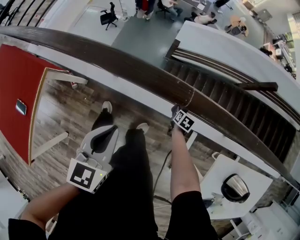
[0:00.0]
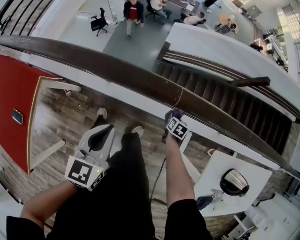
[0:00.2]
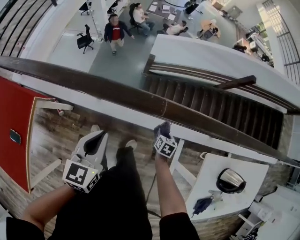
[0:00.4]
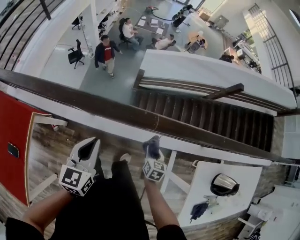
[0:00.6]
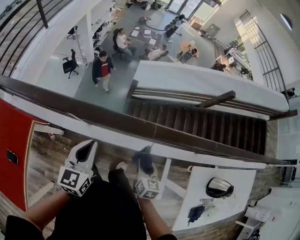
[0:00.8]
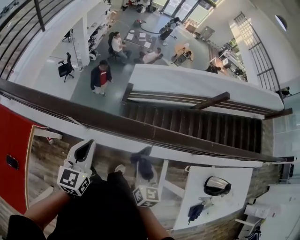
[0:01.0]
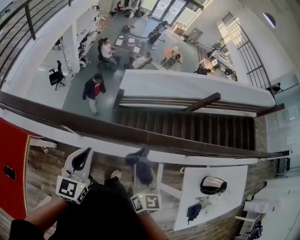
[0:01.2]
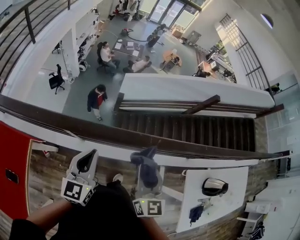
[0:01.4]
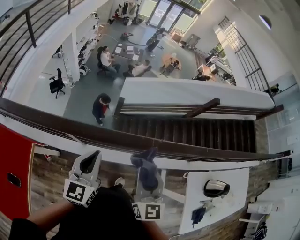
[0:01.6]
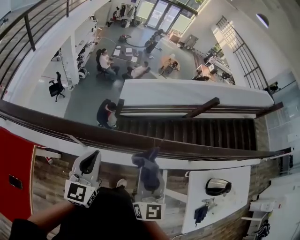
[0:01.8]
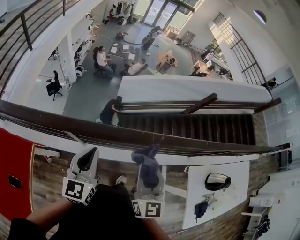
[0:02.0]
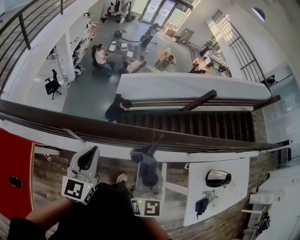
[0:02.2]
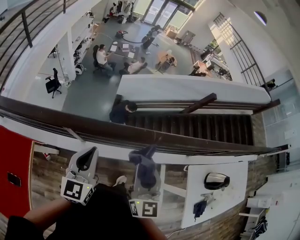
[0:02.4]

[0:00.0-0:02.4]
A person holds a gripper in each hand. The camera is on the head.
0:00.0 to 0:01.2: The right gripper goes some 40 cm upward, and angles its fingers upward, by about 50 degrees, while the left gripper heads forward, to the left and upward, covering roughly 10 cm.
0:01.2 to 0:02.4: The right gripper moves upward, roughly 5 cm.

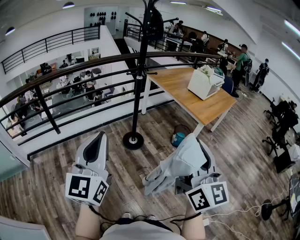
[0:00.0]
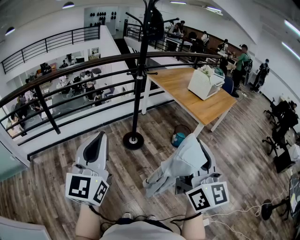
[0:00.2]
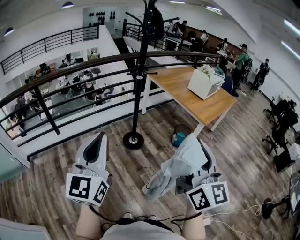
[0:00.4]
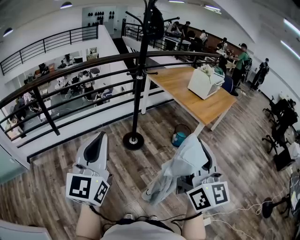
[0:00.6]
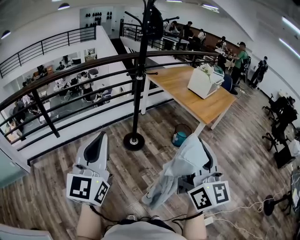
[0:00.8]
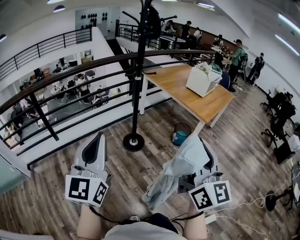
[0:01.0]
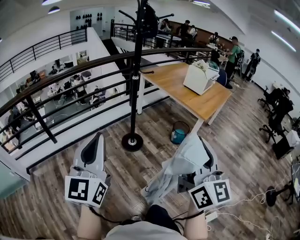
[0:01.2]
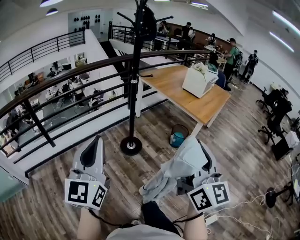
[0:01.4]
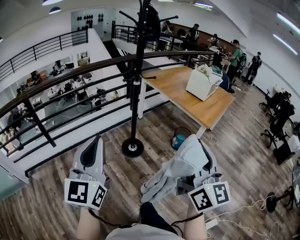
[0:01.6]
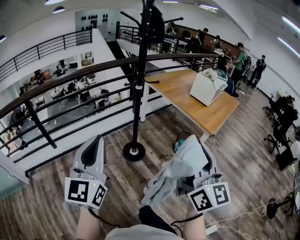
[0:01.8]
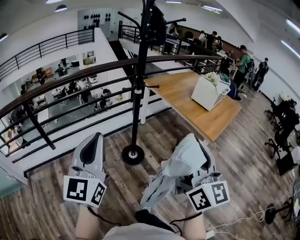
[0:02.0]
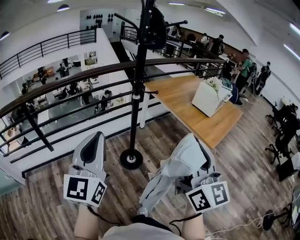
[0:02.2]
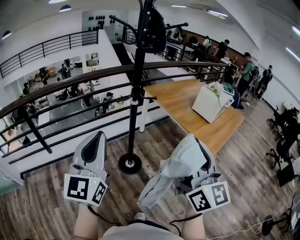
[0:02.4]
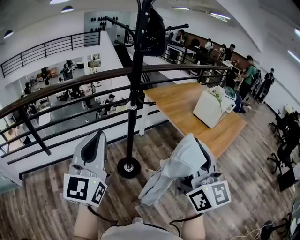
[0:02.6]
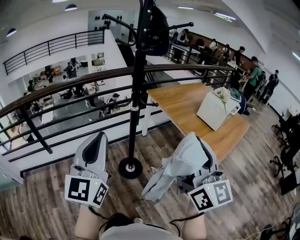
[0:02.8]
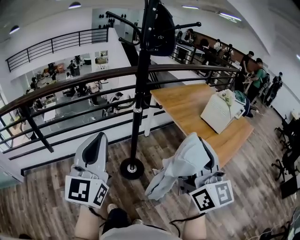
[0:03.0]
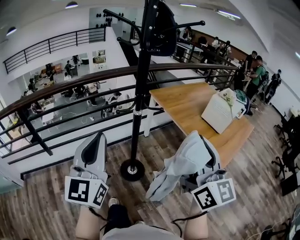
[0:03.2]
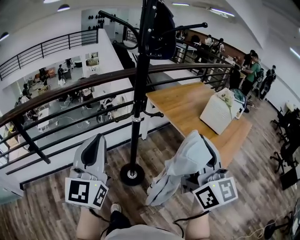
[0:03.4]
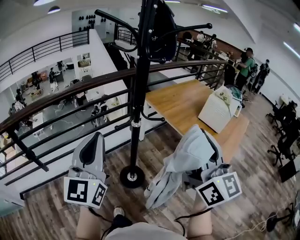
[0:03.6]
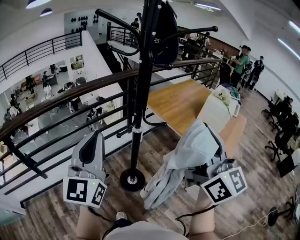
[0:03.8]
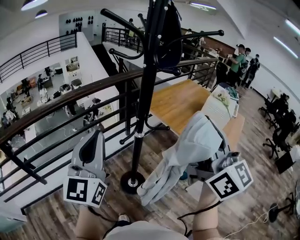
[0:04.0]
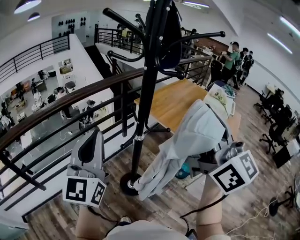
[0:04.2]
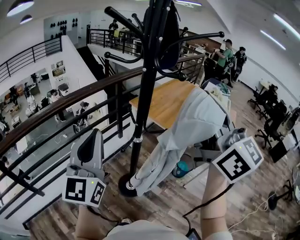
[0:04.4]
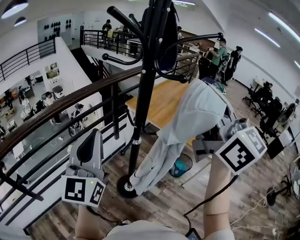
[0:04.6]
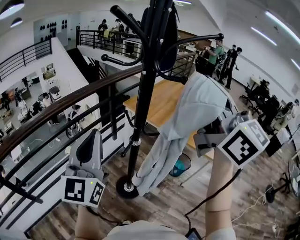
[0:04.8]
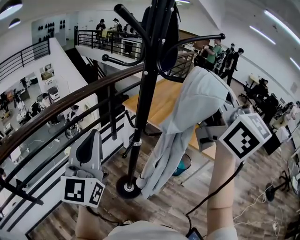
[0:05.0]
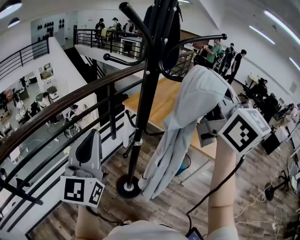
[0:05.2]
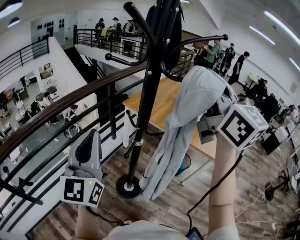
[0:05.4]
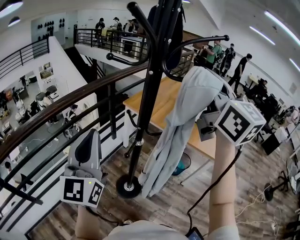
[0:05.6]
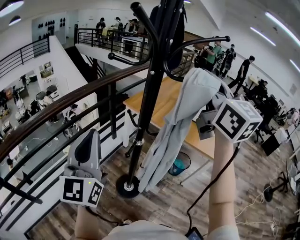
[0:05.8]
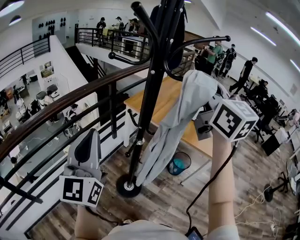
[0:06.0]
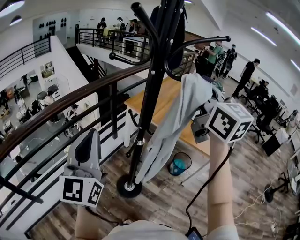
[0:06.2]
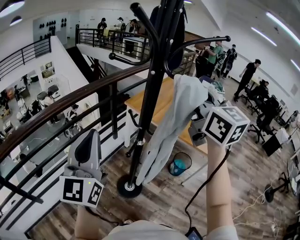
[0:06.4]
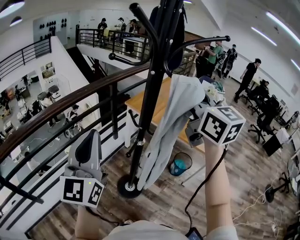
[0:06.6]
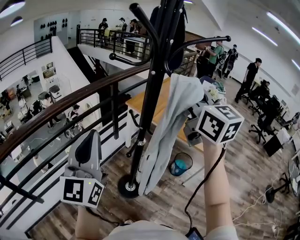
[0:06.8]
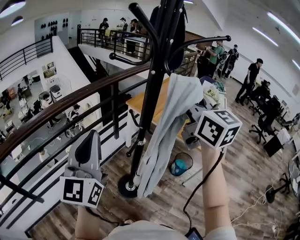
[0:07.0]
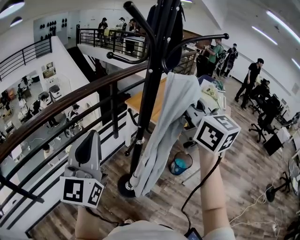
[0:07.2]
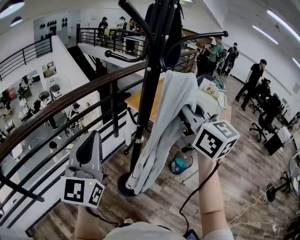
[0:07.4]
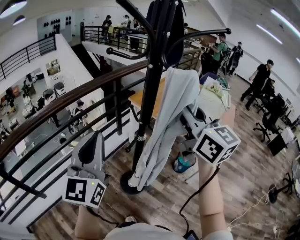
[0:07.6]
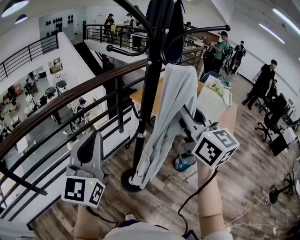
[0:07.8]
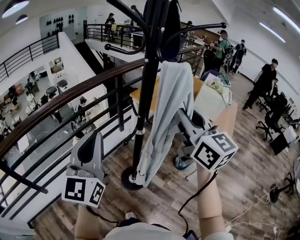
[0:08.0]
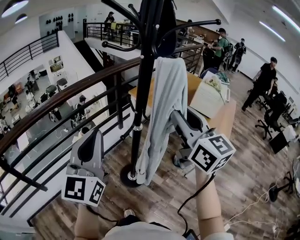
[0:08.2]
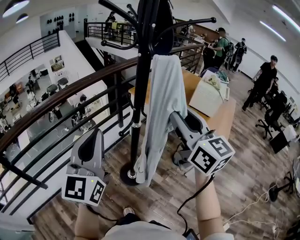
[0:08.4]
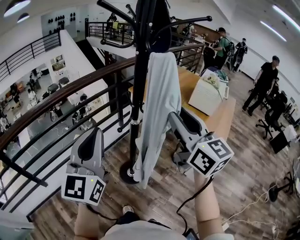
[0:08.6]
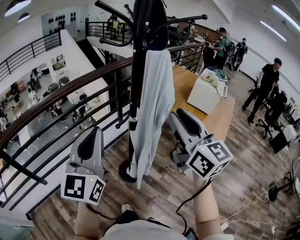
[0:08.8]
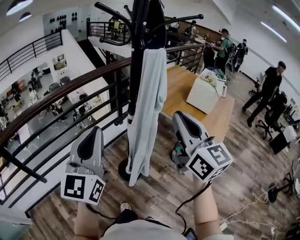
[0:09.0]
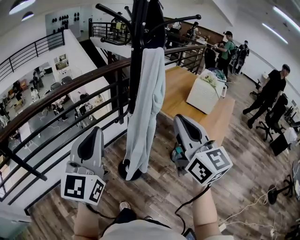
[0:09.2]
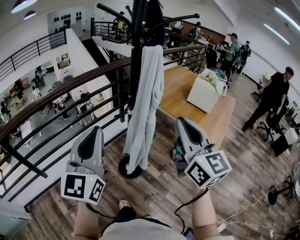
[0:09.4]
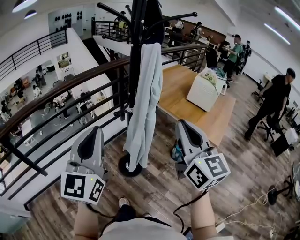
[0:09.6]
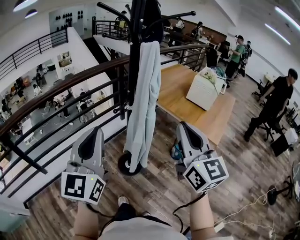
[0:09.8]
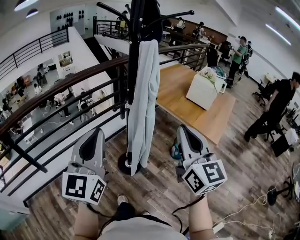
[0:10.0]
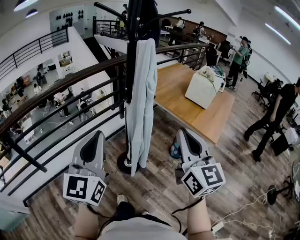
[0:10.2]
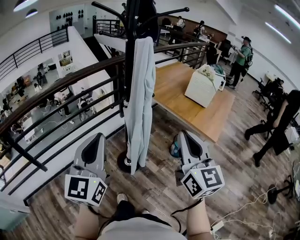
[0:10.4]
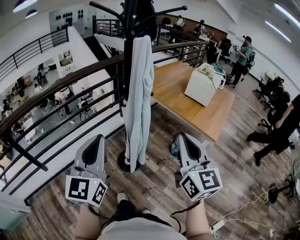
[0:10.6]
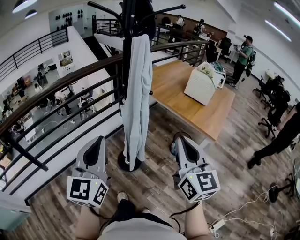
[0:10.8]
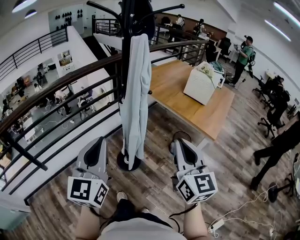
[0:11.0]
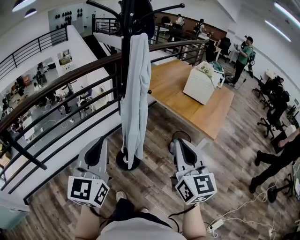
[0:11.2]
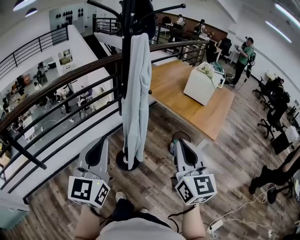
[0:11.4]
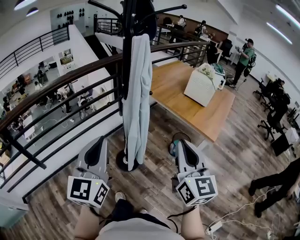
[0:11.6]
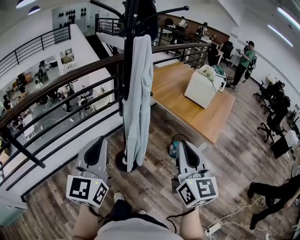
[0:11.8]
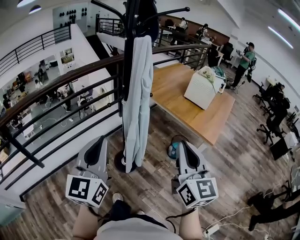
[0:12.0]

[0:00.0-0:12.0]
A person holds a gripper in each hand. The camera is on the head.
0:00.0 to 0:01.6: The right gripper is displaced forward by approximately 10 cm, while the left gripper goes about 10 cm forward and to the left.
0:01.6 to 0:03.0: Both grippers move forward, approximately 25 cm.
0:03.0 to 0:04.4: The left gripper is displaced forward and to the left by about 25 cm. The right gripper goes roughly 25 cm forward, upward and to the left.
0:04.4 to 0:06.0: The left gripper moves approximately 5 cm. Meanwhile the right gripper heads forward, covering approximately 10 cm.
0:06.0 to 0:07.6: The right gripper moves downward, approximately 10 cm.
0:07.6 to 0:09.0: Both grippers move backward, roughly 15 cm. The right gripper opens, then closes again.
0:09.0 to 0:10.4: The left gripper heads backward, covering about 10 cm. The right gripper heads backward, to the right and downward, covering about 15 cm.
0:10.4 to 0:12.0: The grippers make only small movements.

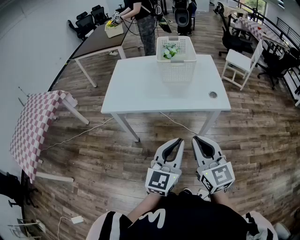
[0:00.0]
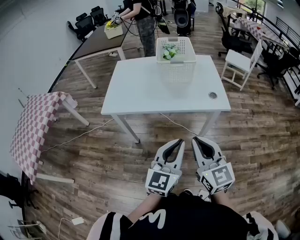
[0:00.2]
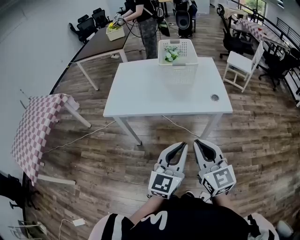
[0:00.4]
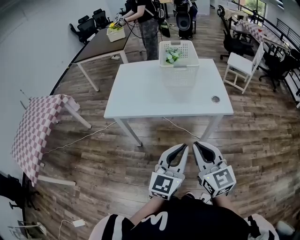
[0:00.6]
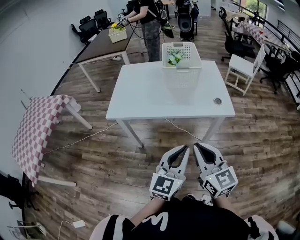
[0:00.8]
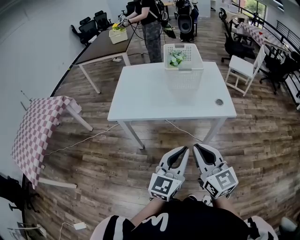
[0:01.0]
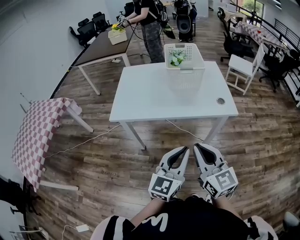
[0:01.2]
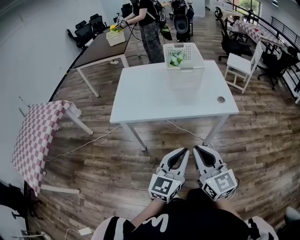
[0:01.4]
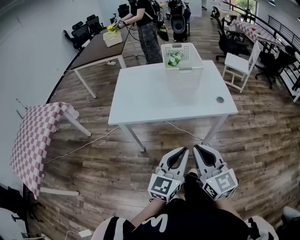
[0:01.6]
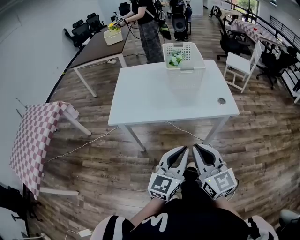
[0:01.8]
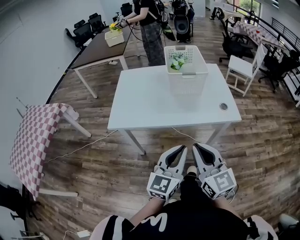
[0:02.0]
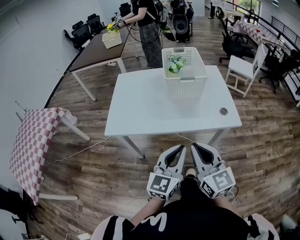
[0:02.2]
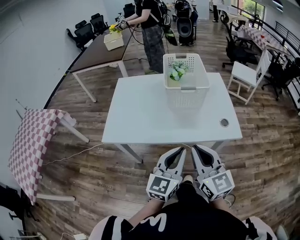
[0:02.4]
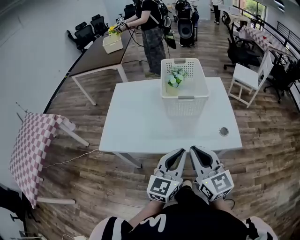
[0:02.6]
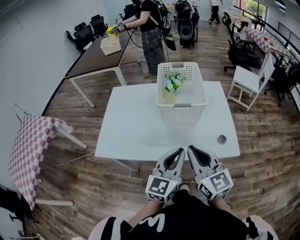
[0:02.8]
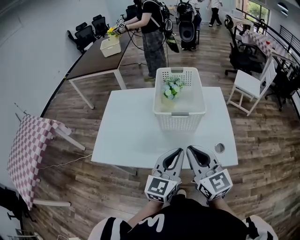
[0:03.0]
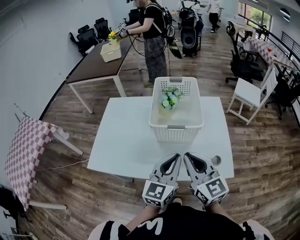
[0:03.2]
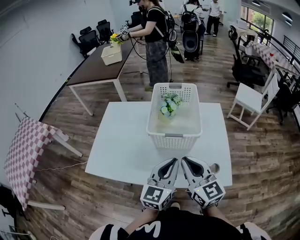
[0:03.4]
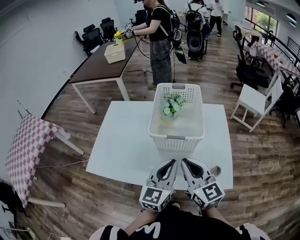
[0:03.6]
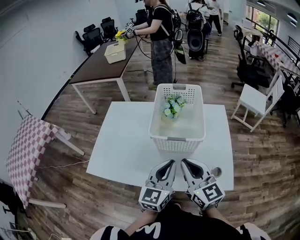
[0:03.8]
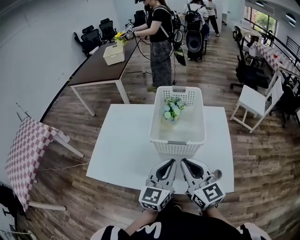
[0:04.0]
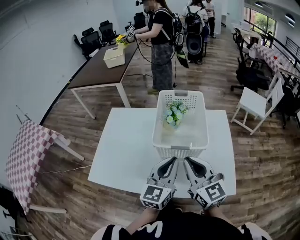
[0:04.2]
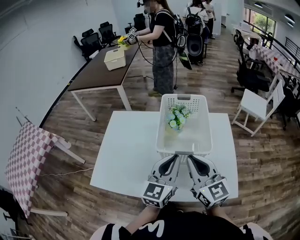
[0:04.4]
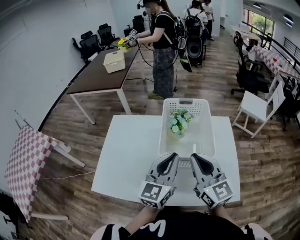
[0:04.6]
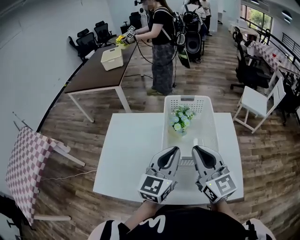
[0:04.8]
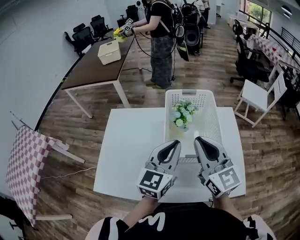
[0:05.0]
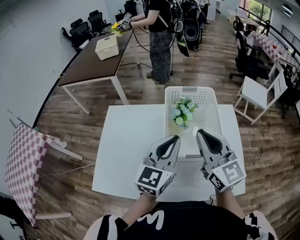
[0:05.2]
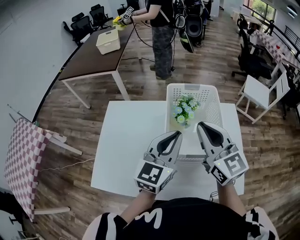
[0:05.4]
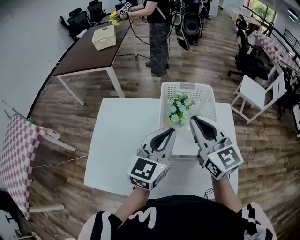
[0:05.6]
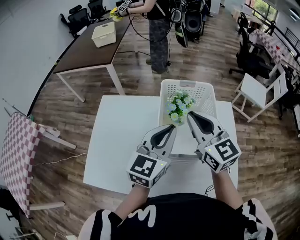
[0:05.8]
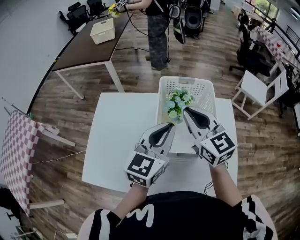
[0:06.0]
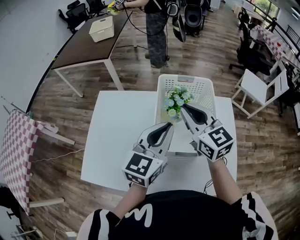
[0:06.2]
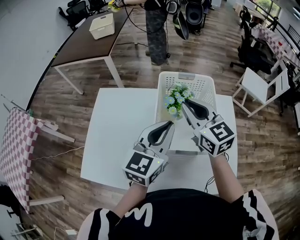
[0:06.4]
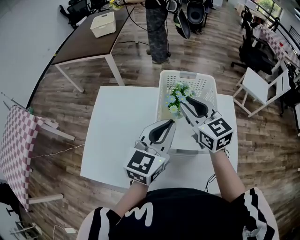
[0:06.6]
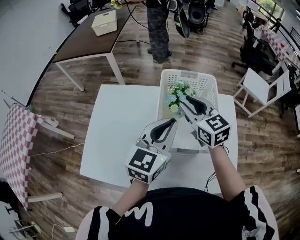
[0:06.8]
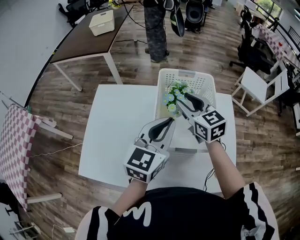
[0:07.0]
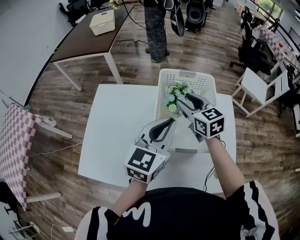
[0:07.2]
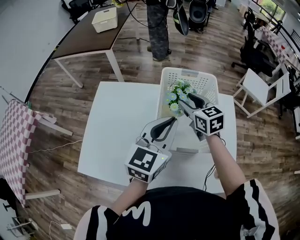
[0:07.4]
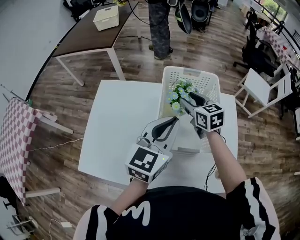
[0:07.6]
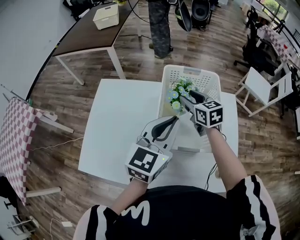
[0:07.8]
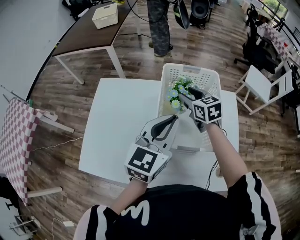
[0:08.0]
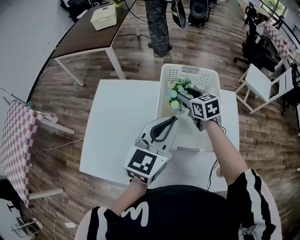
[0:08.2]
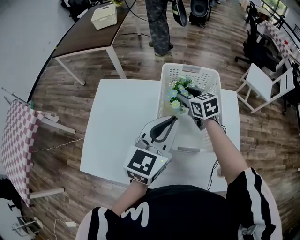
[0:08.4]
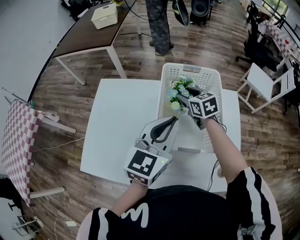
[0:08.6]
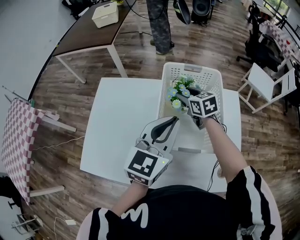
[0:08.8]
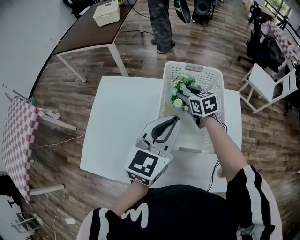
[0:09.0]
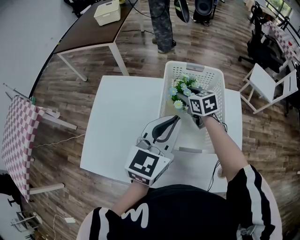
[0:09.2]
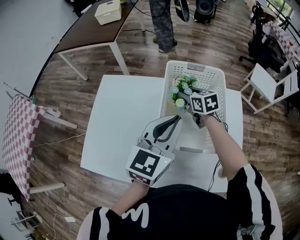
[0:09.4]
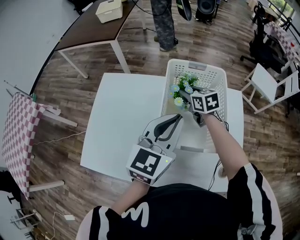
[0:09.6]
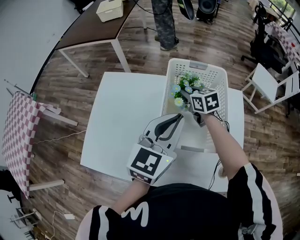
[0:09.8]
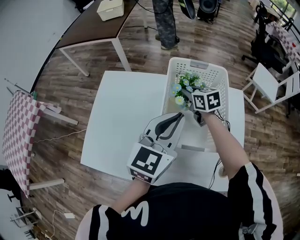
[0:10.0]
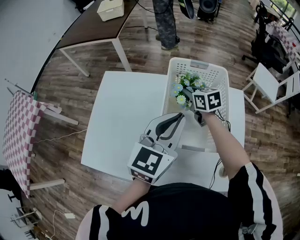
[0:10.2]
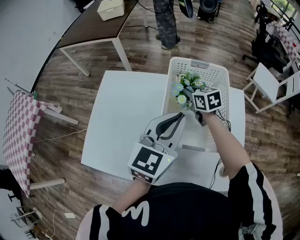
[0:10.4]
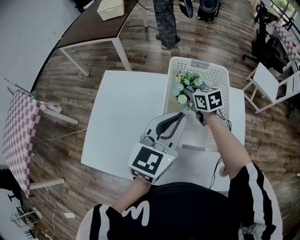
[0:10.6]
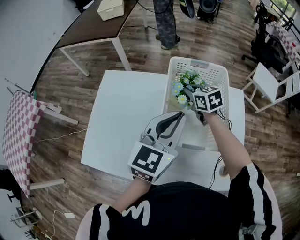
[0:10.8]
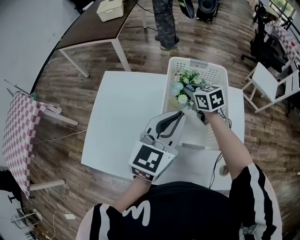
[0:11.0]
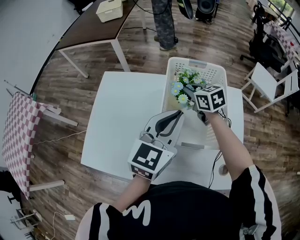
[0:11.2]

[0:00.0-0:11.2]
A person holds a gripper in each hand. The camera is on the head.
0:00.0 to 0:01.6: Both grippers travel together to the left, some 5 cm.
0:01.6 to 0:03.2: Both grippers move forward, approximately 30 cm.
0:03.2 to 0:04.8: The left gripper is displaced forward by roughly 15 cm, while the right gripper shifts roughly 15 cm forward and upward.
0:04.8 to 0:06.4: The left gripper travels forward by roughly 5 cm, while the right gripper moves forward, some 15 cm.
0:06.4 to 0:08.0: The right gripper travels downward and forward by about 15 cm, turns by about 20 degrees, and opens up.
0:08.0 to 0:09.6: The right gripper travels downward by approximately 5 cm.
0:09.6 to 0:11.2: The right gripper closes its fingers.
